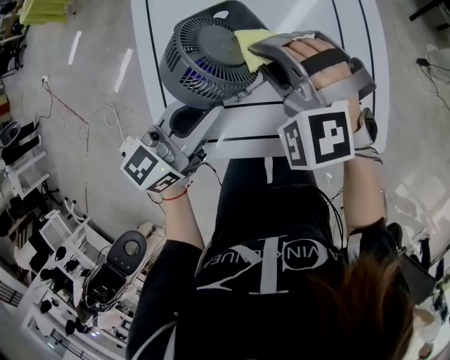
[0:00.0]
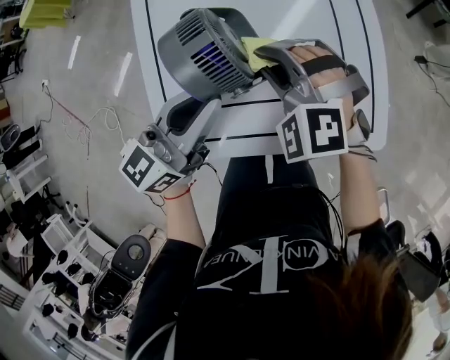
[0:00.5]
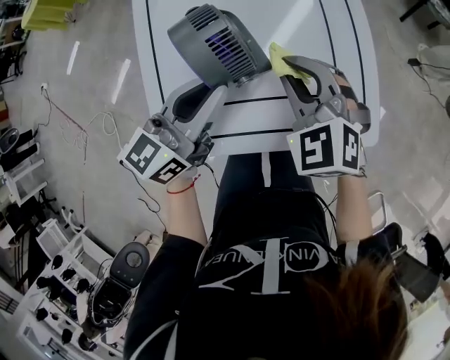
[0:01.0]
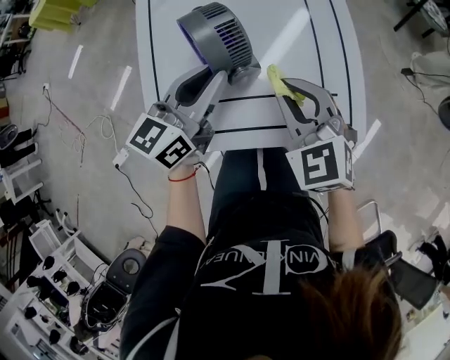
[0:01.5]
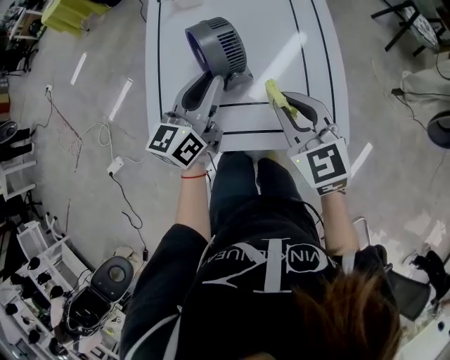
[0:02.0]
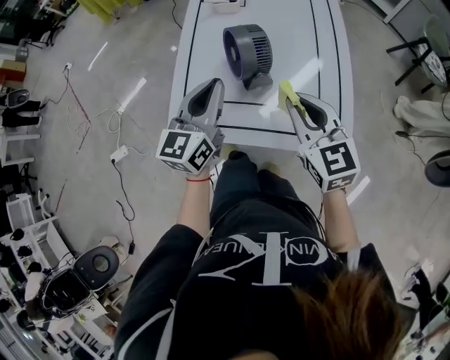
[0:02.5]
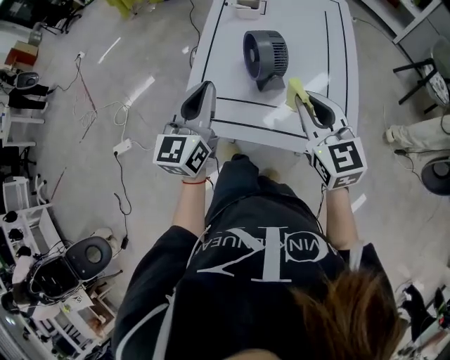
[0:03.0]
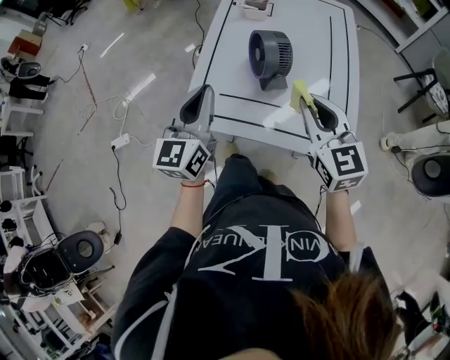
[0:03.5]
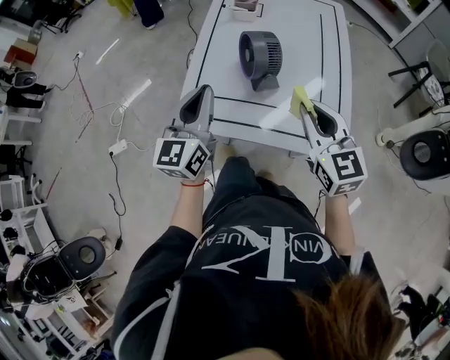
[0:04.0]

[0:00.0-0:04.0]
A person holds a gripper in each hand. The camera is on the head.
0:00.0 to 0:02.0: The right gripper goes roughly 15 cm to the right, backward and upward, and rolls clockwise, seen from behind, by some 50 degrees, while the left gripper heads upward, covering about 5 cm, and rotates roughly 20 degrees.
0:02.0 to 0:04.0: The right gripper is displaced upward by about 5 cm. Meanwhile the left gripper heads to the left, backward and upward, covering approximately 15 cm, and changes its angle by some 30 degrees.

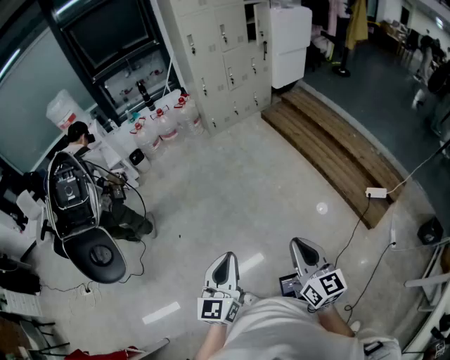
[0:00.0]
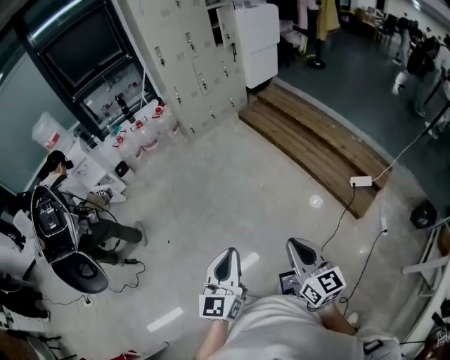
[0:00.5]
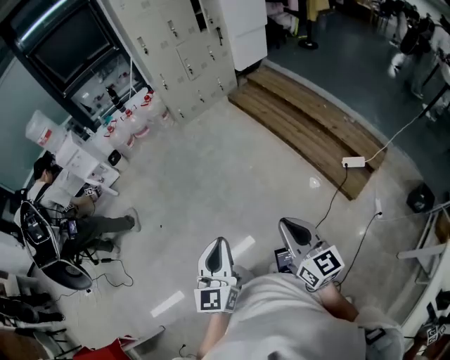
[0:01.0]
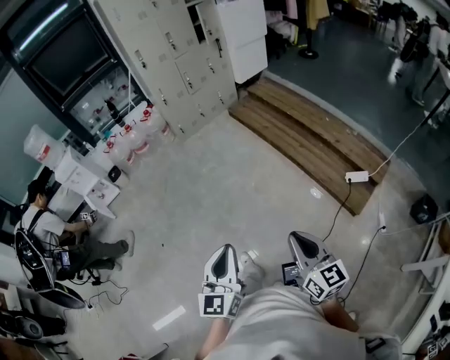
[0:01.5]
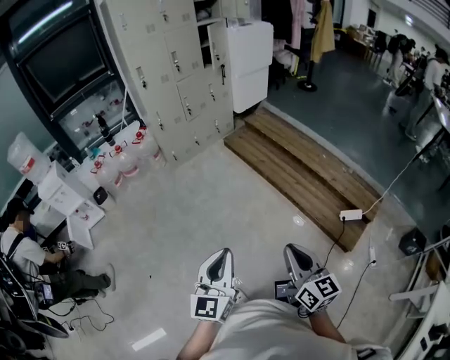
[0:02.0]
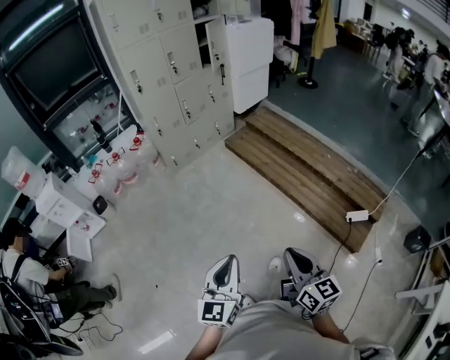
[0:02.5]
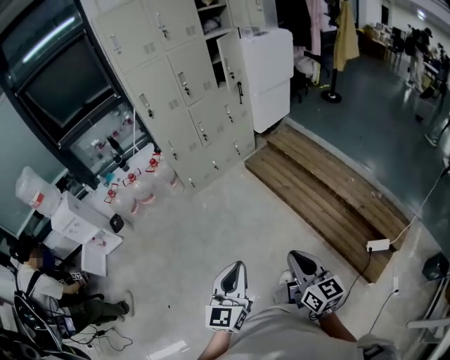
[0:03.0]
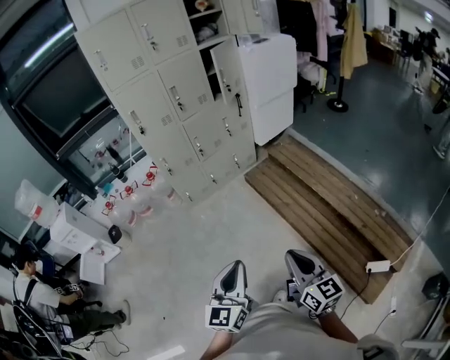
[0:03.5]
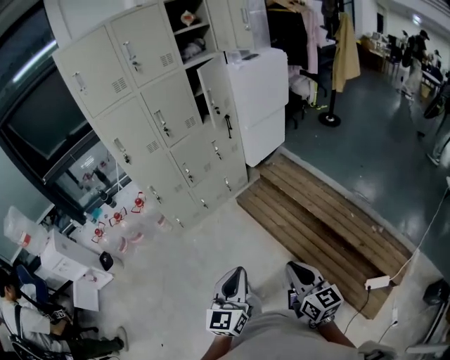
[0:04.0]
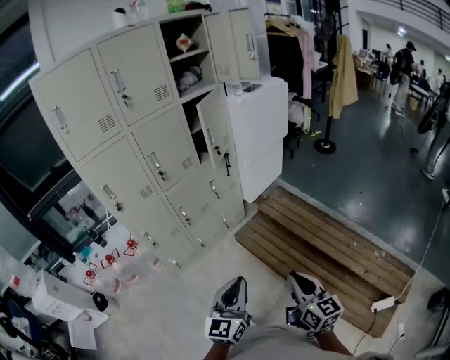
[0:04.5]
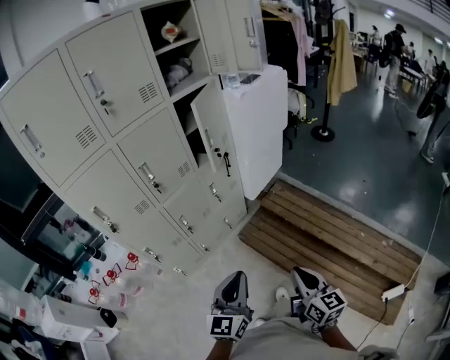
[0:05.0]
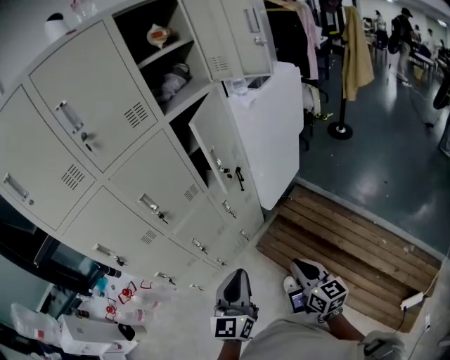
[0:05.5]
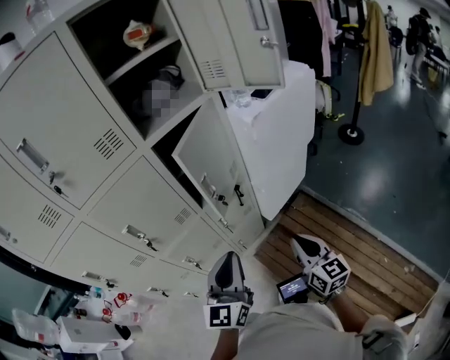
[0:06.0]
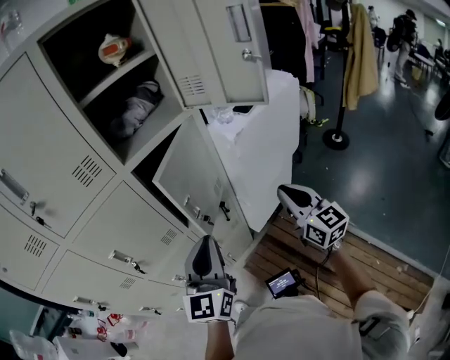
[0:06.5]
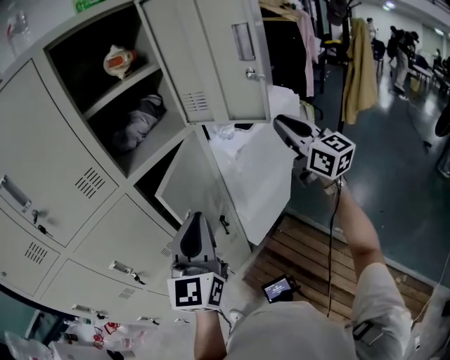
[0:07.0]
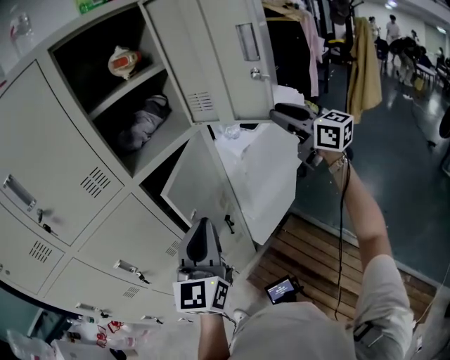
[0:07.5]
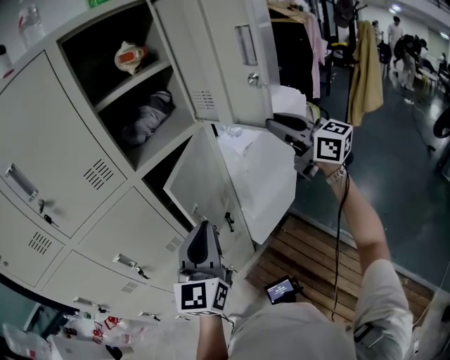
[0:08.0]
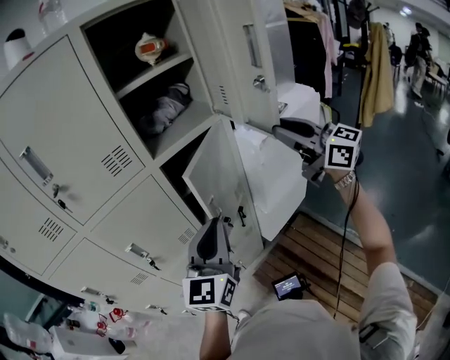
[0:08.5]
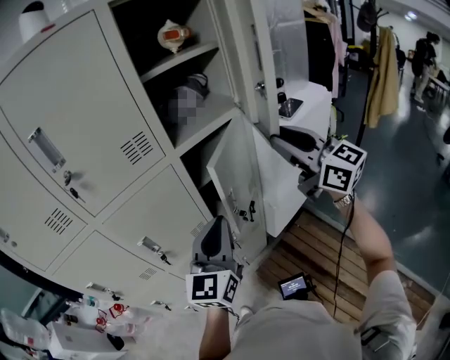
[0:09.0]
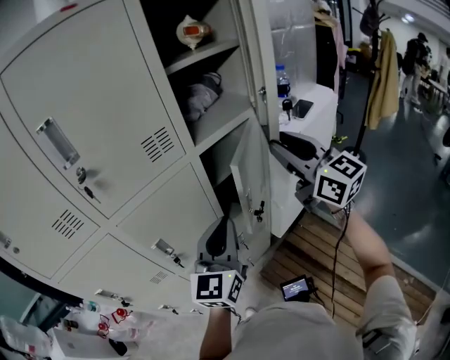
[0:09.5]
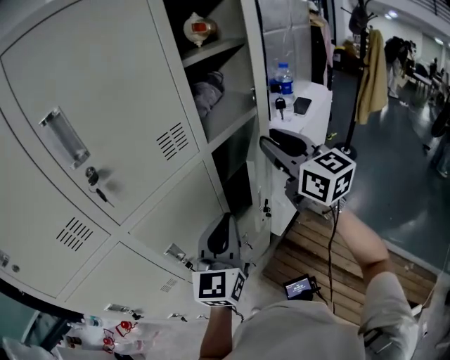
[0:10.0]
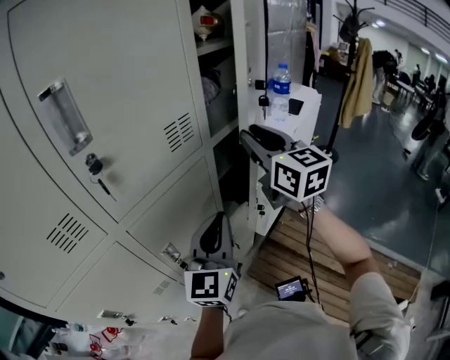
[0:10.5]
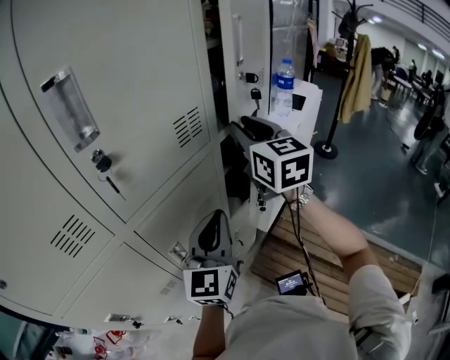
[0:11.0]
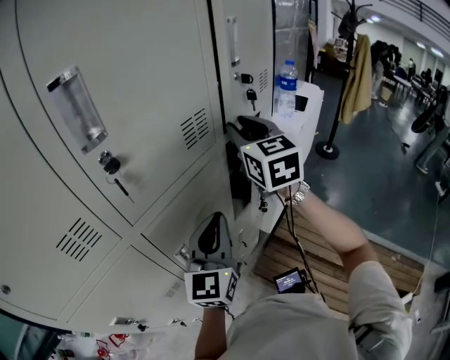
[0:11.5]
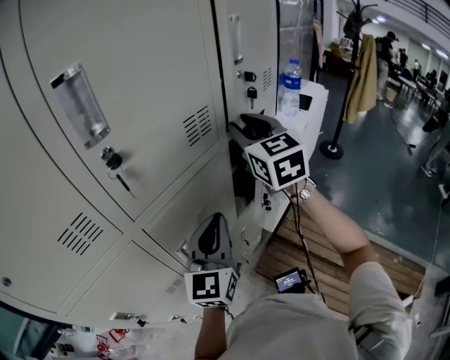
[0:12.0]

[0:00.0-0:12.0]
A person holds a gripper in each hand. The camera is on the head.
0:00.0 to 0:02.0: The grippers both shift forward and to the right by some 25 cm.
0:02.0 to 0:04.0: The pair of grippers is taken forward, roughly 50 cm.
0:04.0 to 0:06.0: Both grippers are carried forward, about 70 cm.
0:06.0 to 0:08.0: The left gripper travels upward and forward by about 15 cm. Meanwhile the right gripper is displaced upward and forward by roughly 40 cm, and changes its angle by approximately 30 degrees.
0:08.0 to 0:10.0: The right gripper goes about 25 cm to the left, and turns by roughly 20 degrees; the left gripper heads to the left, covering about 15 cm.
0:10.0 to 0:12.0: The right gripper shifts some 15 cm to the left and forward, and turns by approximately 20 degrees. Meanwhile the left gripper shifts roughly 10 cm to the left.

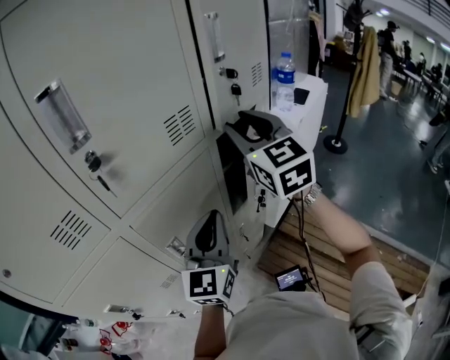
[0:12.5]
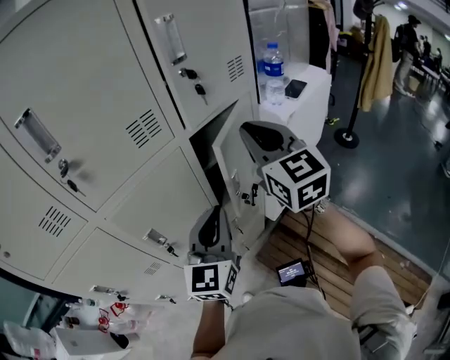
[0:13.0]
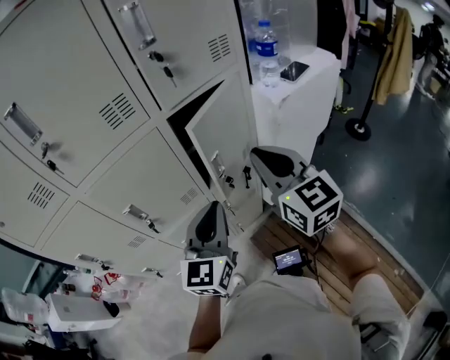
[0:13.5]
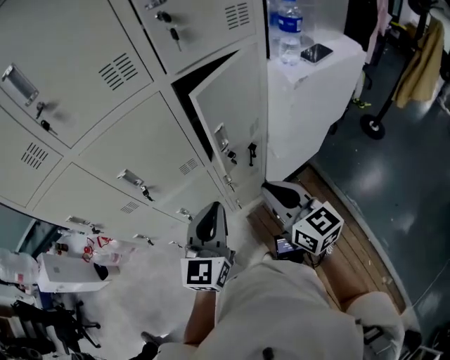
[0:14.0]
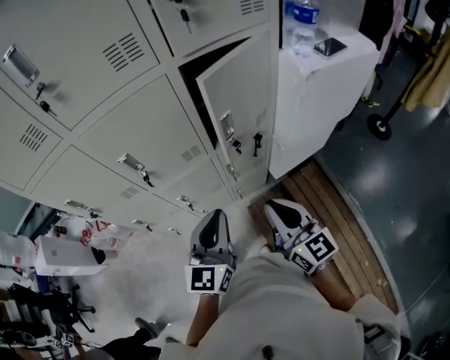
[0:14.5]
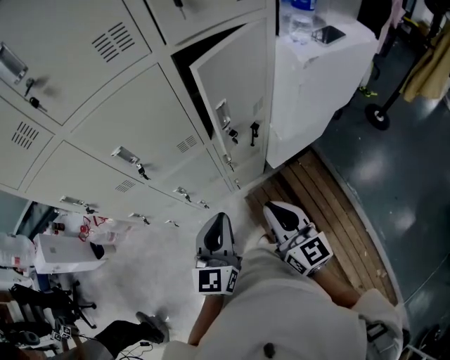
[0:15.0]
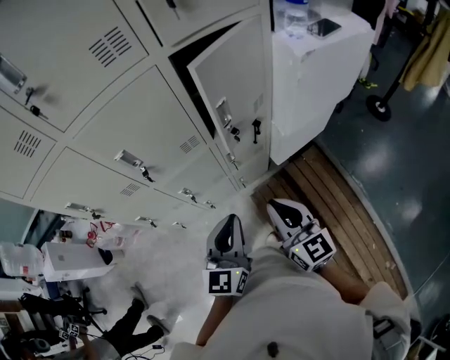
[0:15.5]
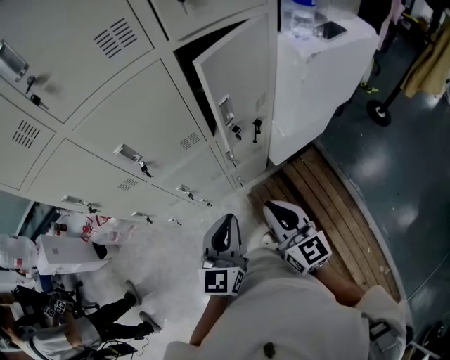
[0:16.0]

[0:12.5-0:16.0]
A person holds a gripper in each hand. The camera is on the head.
0:12.5 to 0:14.5: The left gripper changes place by roughly 25 cm, and changes its angle by some 20 degrees. The right gripper moves downward, about 30 cm, turns by approximately 40 degrees, and closes up.
0:14.5 to 0:16.0: The left gripper ends up about 5 cm from where it was.

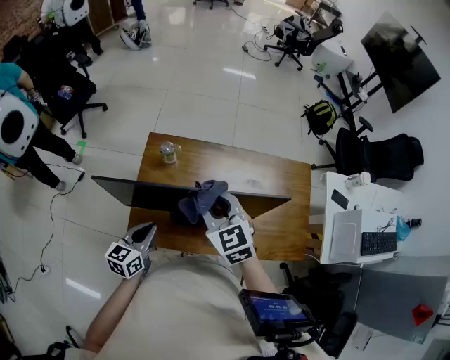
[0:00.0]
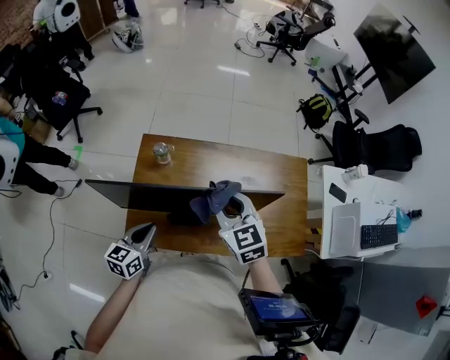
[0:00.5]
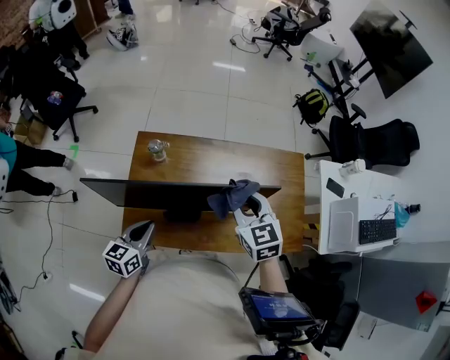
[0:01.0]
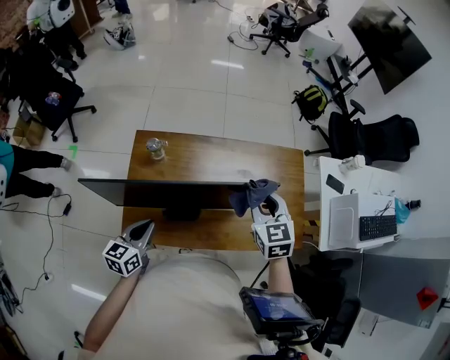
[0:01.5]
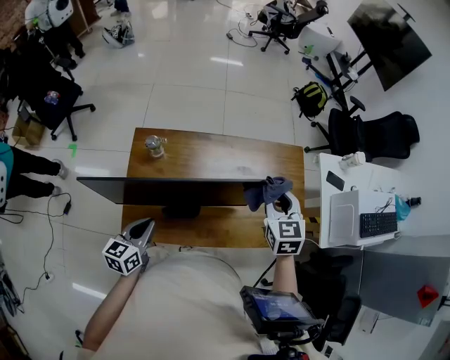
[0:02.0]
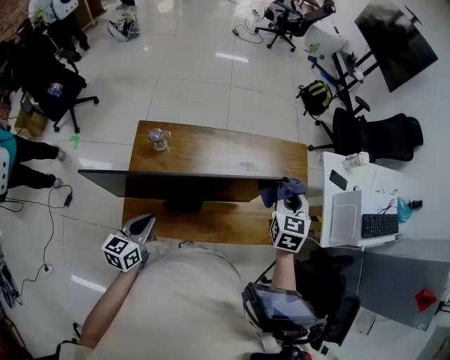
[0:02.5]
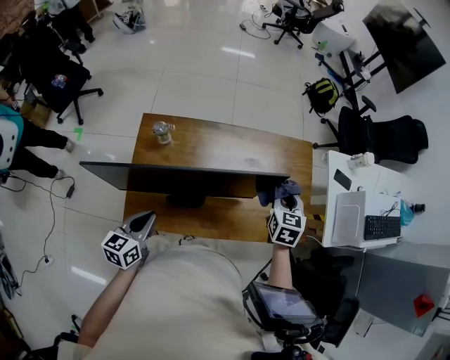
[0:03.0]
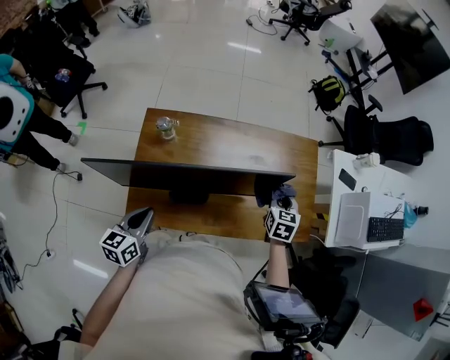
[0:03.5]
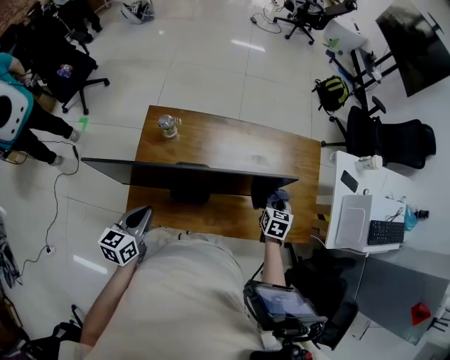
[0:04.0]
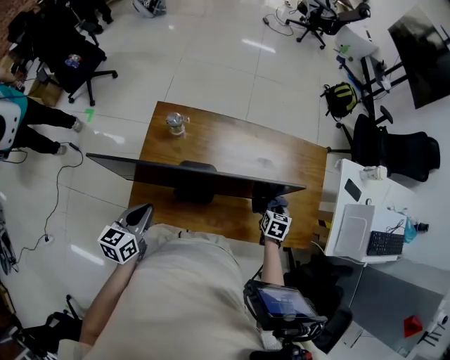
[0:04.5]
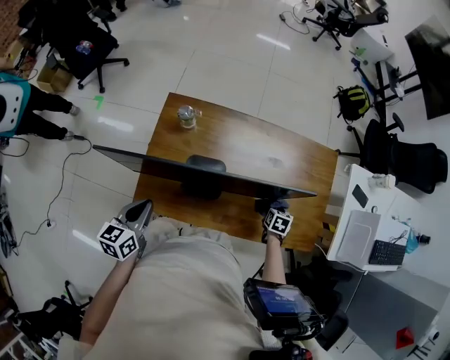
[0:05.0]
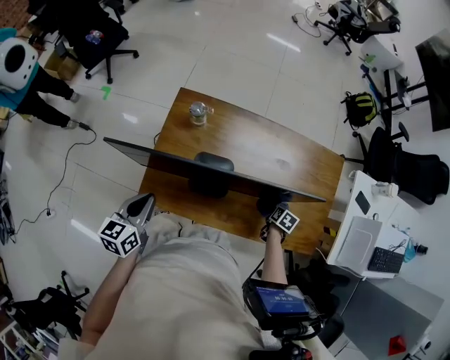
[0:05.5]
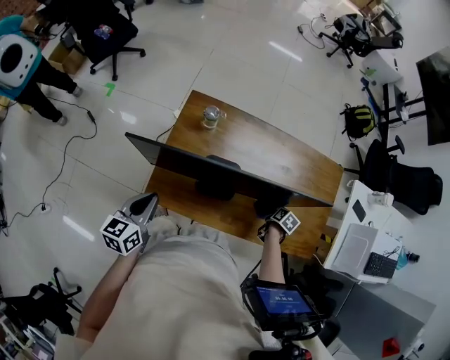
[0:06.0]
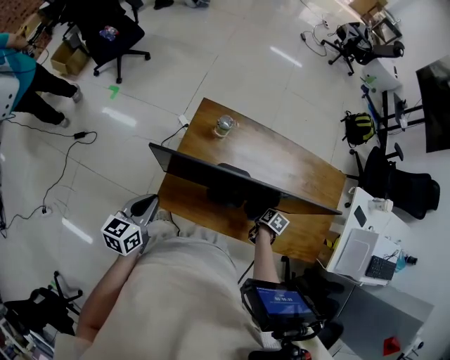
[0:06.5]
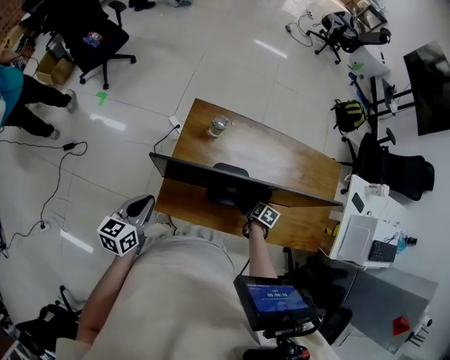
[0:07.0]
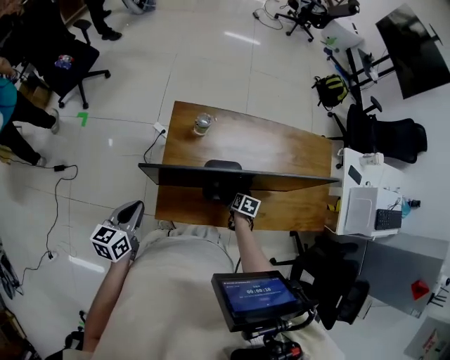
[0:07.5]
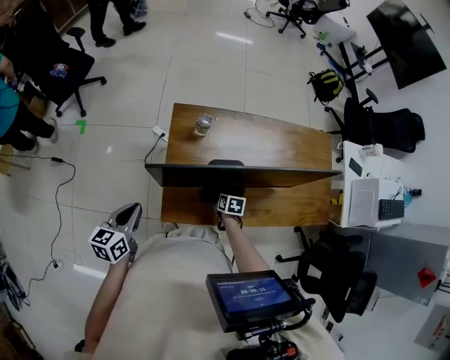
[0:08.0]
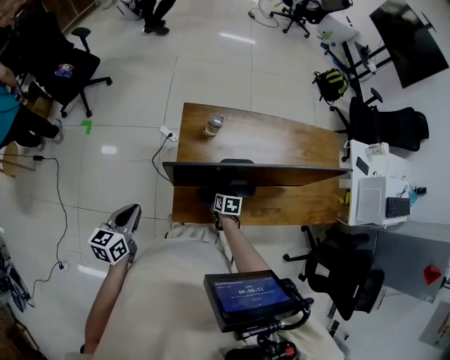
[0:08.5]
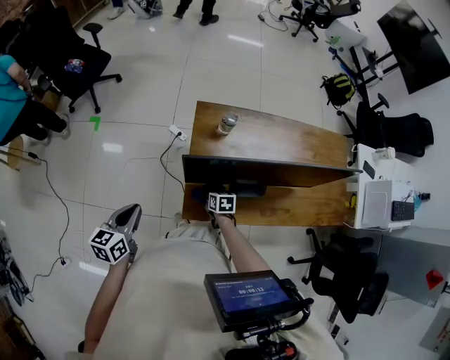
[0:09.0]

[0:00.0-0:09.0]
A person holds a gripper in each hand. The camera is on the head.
0:00.0 to 0:02.0: The right gripper heads to the right, covering some 25 cm, and swivels about 30 degrees.
0:02.0 to 0:04.5: The right gripper moves downward, some 25 cm, and rotates some 30 degrees.
0:04.5 to 0:07.0: The right gripper travels to the left and downward by roughly 20 cm, and turns by some 30 degrees. Meanwhile the left gripper goes approximately 15 cm to the left.
0:07.0 to 0:09.0: The right gripper shifts about 30 cm to the left, and changes its angle by approximately 30 degrees; the left gripper travels to the left by some 15 cm.
